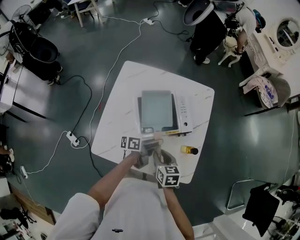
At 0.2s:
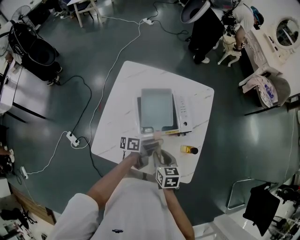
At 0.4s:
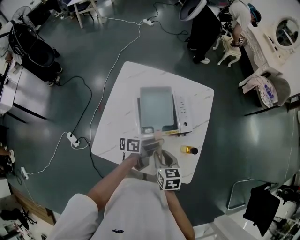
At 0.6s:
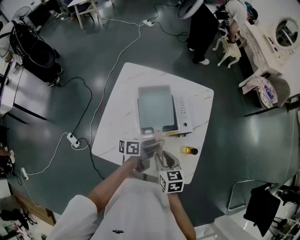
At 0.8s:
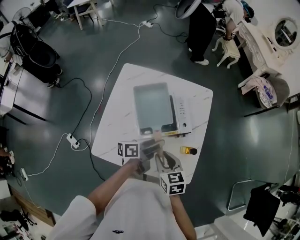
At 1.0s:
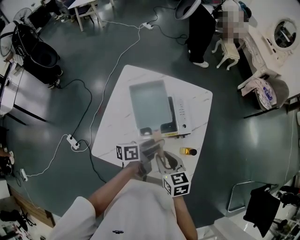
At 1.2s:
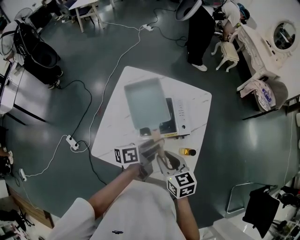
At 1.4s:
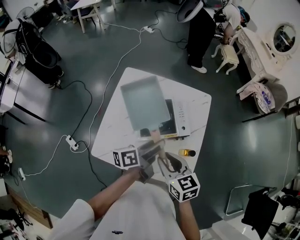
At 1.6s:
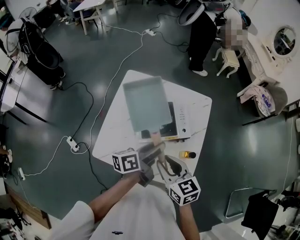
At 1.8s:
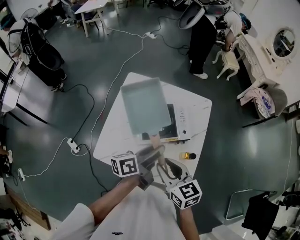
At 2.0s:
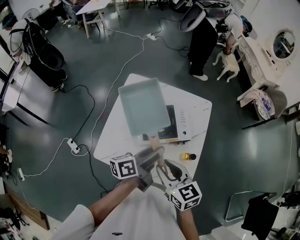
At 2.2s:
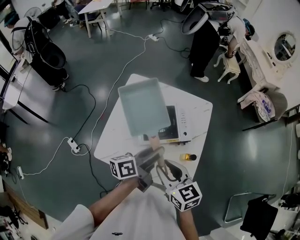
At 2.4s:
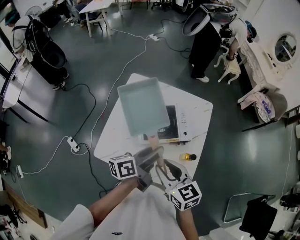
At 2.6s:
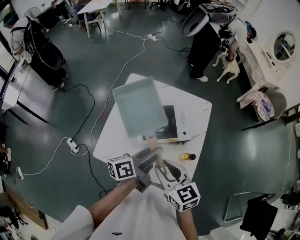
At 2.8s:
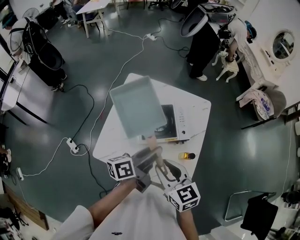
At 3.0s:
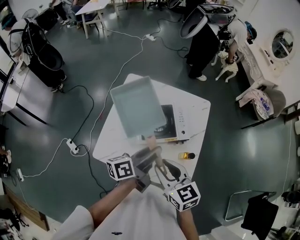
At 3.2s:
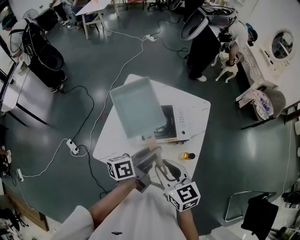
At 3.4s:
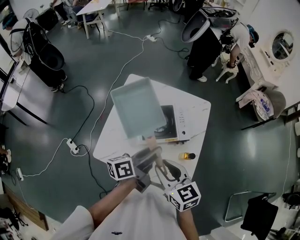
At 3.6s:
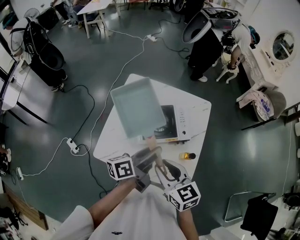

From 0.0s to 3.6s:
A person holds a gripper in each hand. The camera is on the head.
From 0.0s to 1.8s: Both grippers travel together upward, about 20 cm. The right gripper swivels some 30 degrees, while the left gripper turns by approximately 20 degrees.
From 1.8s to 3.6s: The grippers stay close to where they were, moving slightly.

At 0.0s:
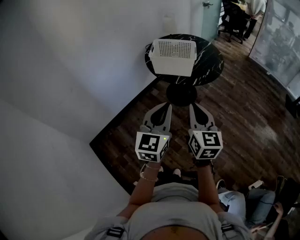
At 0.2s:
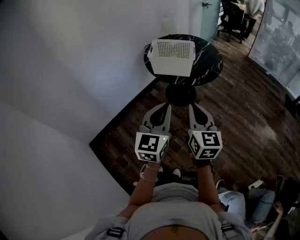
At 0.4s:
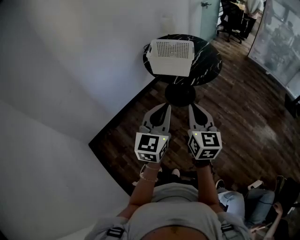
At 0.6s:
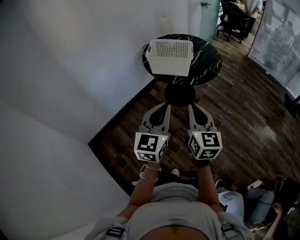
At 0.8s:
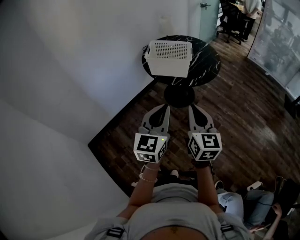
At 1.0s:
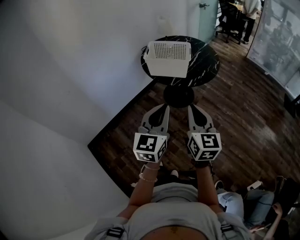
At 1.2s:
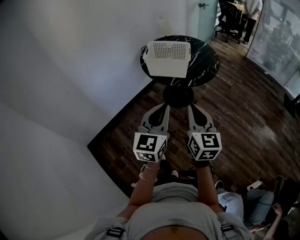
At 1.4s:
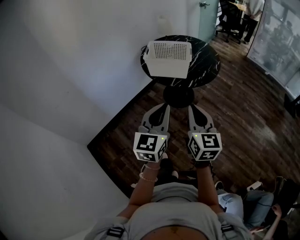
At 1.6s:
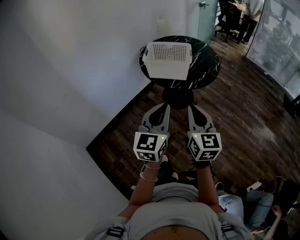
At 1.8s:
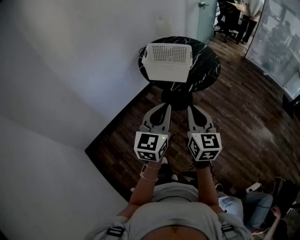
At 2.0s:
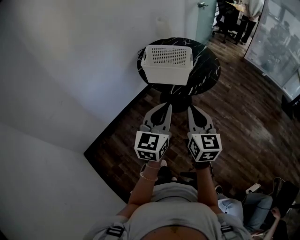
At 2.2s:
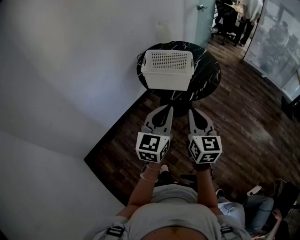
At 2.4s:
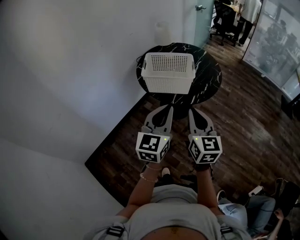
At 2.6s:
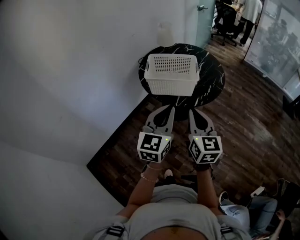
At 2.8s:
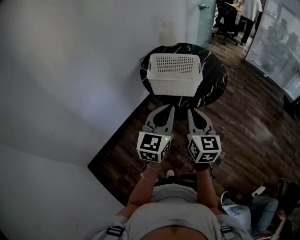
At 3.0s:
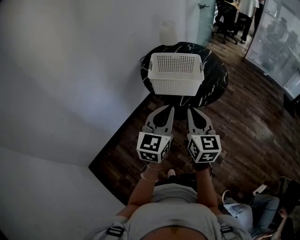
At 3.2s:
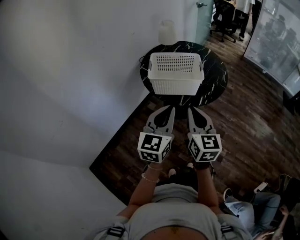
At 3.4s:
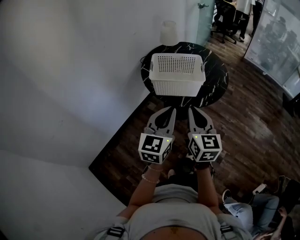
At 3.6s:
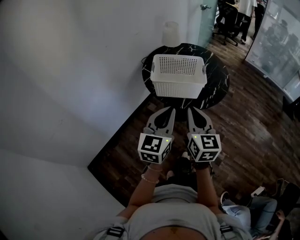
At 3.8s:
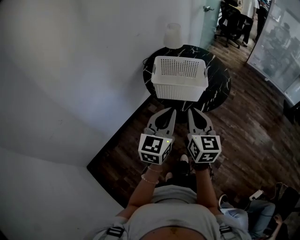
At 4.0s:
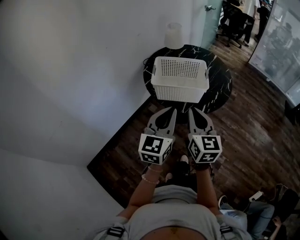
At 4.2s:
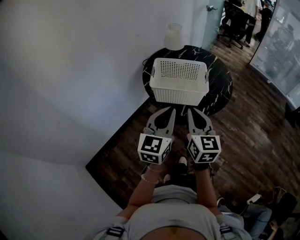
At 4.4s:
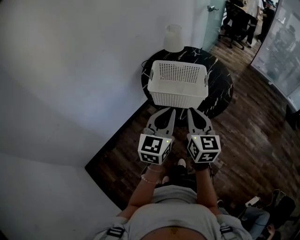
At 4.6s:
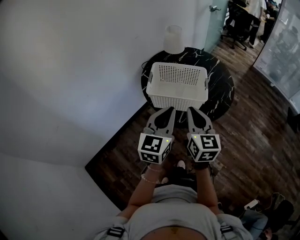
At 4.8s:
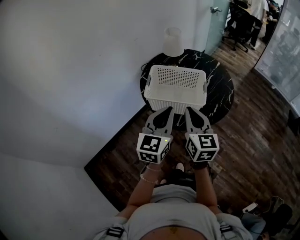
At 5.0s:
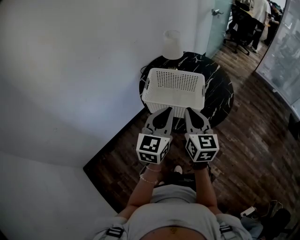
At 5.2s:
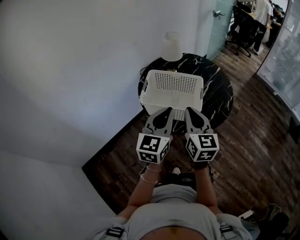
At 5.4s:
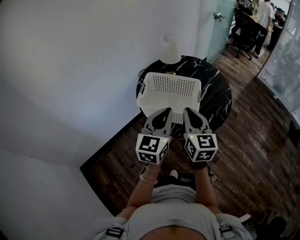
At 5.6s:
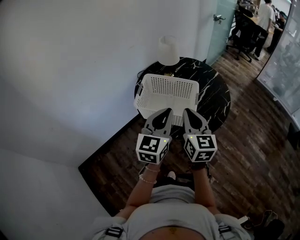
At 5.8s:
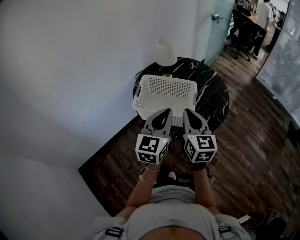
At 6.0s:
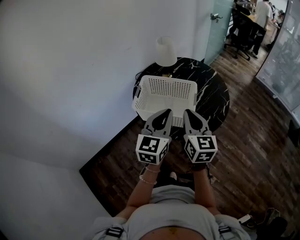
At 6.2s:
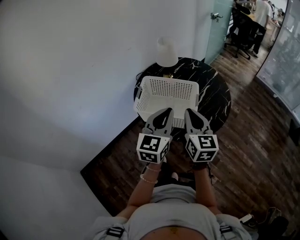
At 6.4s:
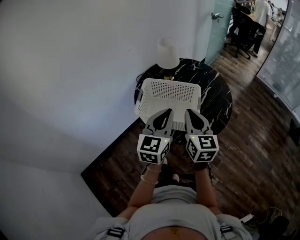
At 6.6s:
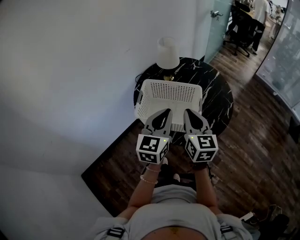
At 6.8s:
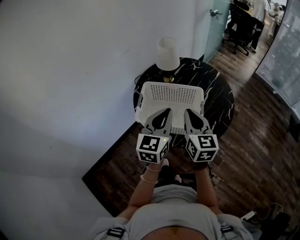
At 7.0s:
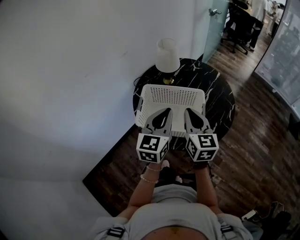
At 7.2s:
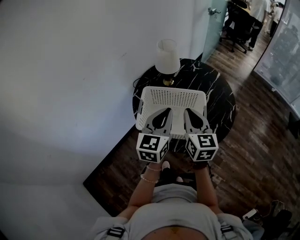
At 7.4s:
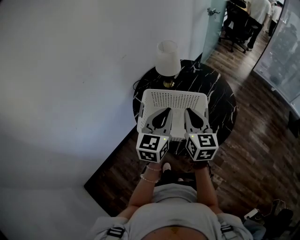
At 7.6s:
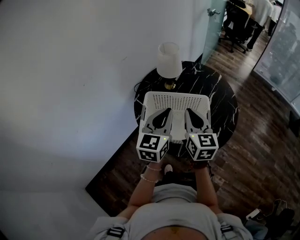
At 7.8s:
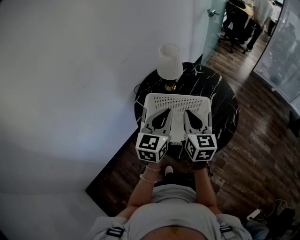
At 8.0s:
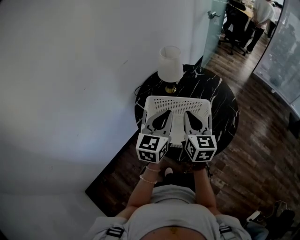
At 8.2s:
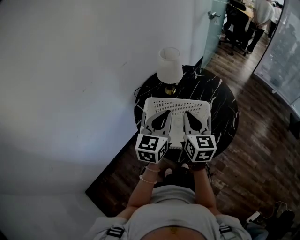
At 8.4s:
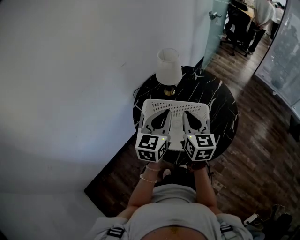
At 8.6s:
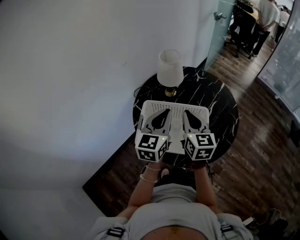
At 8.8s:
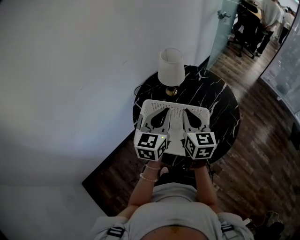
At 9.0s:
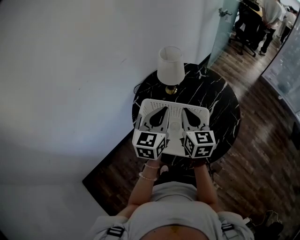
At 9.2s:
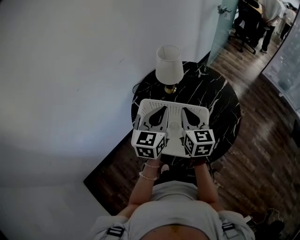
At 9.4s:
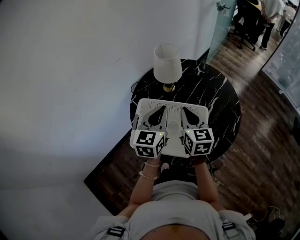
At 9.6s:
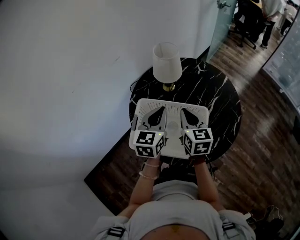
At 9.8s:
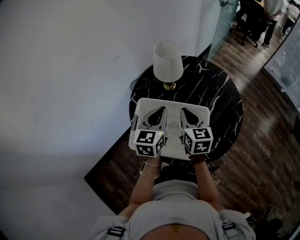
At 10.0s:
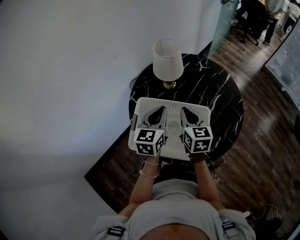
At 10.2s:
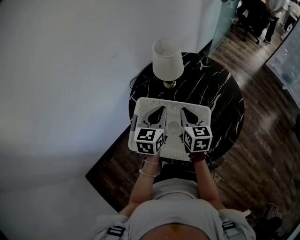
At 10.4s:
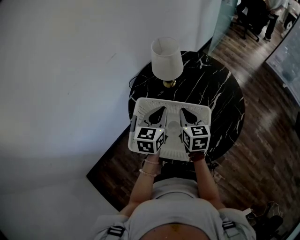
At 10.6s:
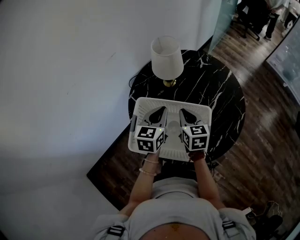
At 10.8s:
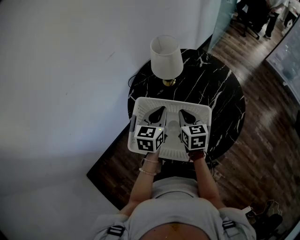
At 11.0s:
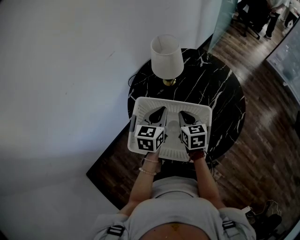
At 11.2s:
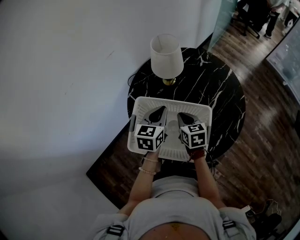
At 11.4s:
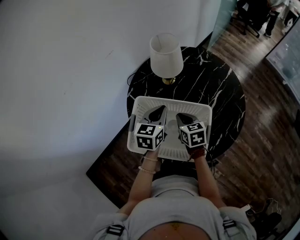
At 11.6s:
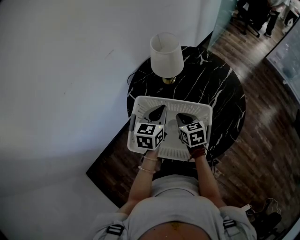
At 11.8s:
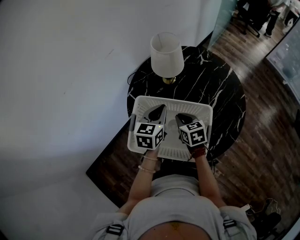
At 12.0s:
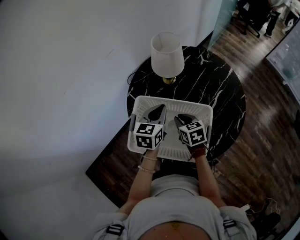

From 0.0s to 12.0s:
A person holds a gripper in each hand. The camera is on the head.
From 0.0s to 1.6s: There are only small adjustments of the grippers.
From 1.6s to 3.0s: The two grippers go about 20 cm forward and to the left.
From 3.0s to 4.4s: Both grippers travel together forward, roughly 10 cm.
From 4.4s to 6.0s: Both grippers move forward and to the right, roughly 15 cm.
From 6.0s to 7.6s: Both grippers move forward and to the left, some 15 cm.
From 7.6s to 9.0s: Both grippers move forward, roughly 10 cm.
From 9.0s to 10.4s: The right gripper travels downward by some 10 cm. Meanwhile the left gripper heads downward and forward, covering approximately 10 cm.
From 10.4s to 12.0s: The right gripper heads downward, covering about 10 cm, and rotates some 20 degrees.

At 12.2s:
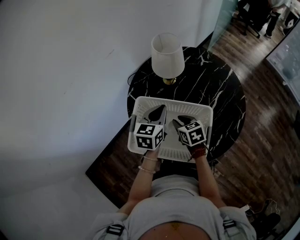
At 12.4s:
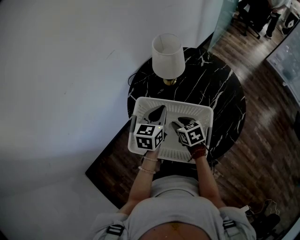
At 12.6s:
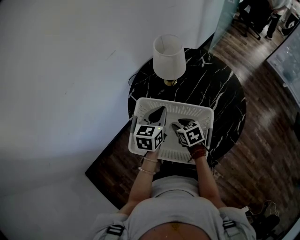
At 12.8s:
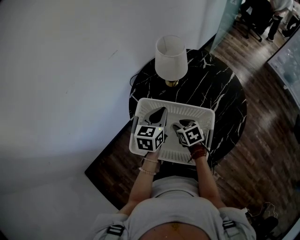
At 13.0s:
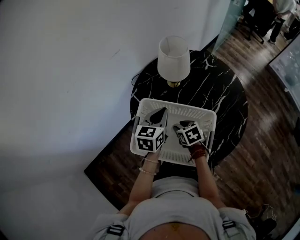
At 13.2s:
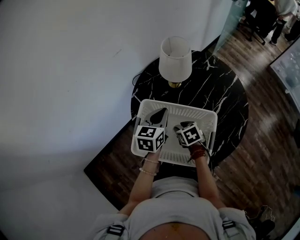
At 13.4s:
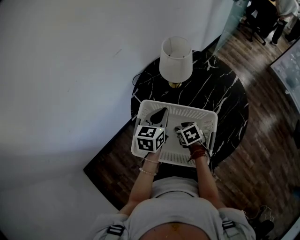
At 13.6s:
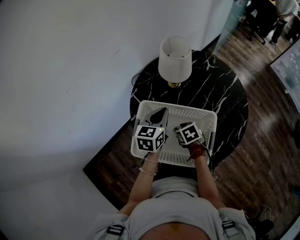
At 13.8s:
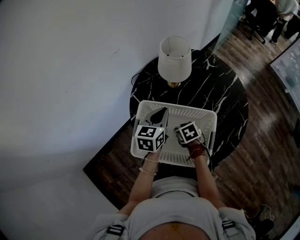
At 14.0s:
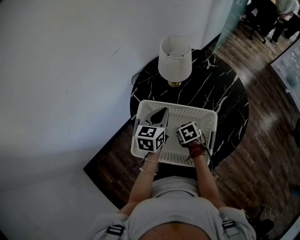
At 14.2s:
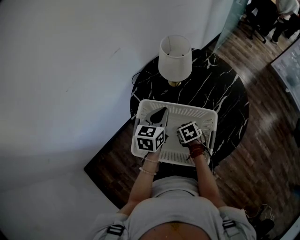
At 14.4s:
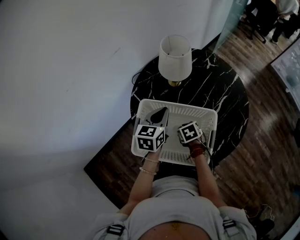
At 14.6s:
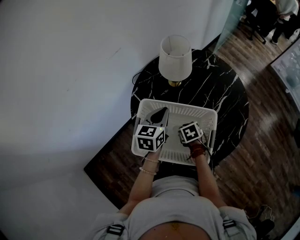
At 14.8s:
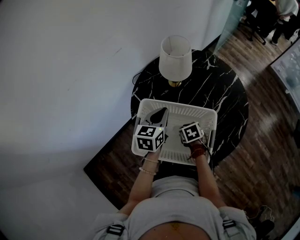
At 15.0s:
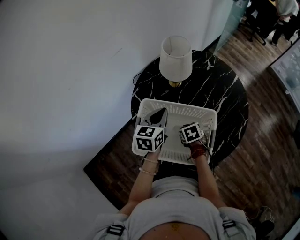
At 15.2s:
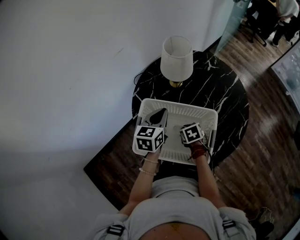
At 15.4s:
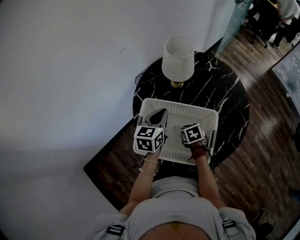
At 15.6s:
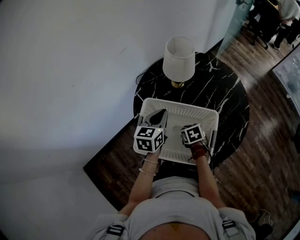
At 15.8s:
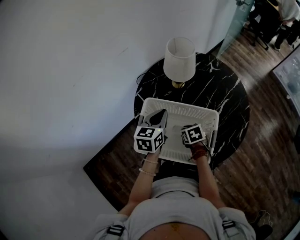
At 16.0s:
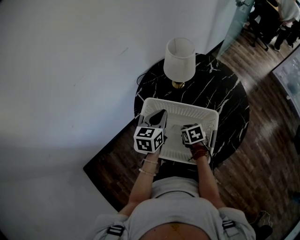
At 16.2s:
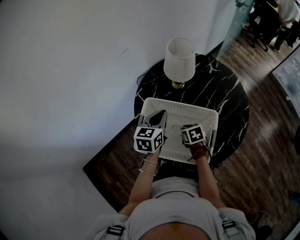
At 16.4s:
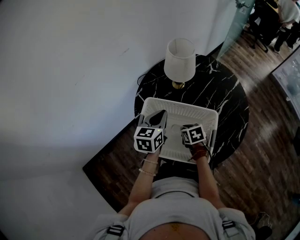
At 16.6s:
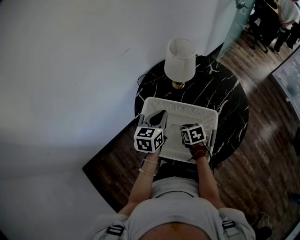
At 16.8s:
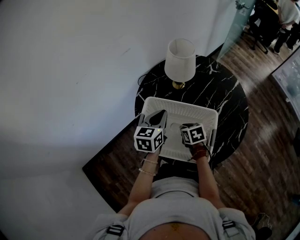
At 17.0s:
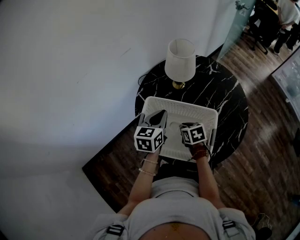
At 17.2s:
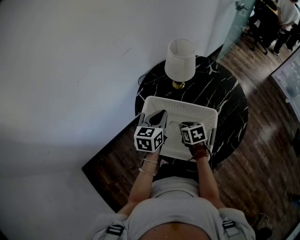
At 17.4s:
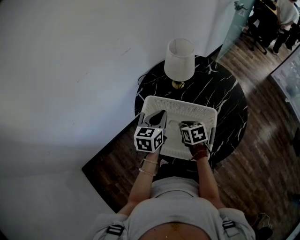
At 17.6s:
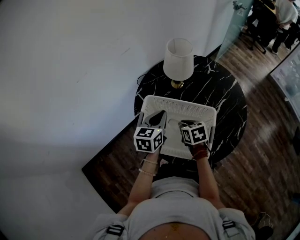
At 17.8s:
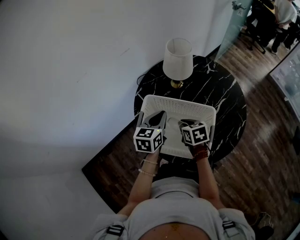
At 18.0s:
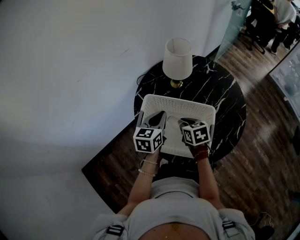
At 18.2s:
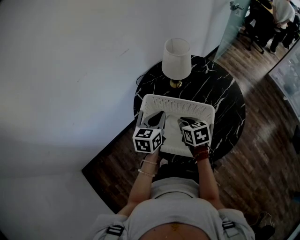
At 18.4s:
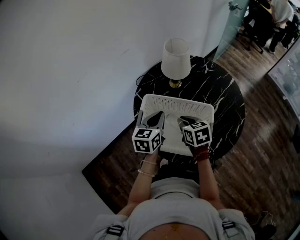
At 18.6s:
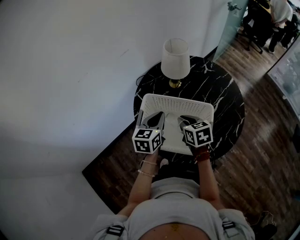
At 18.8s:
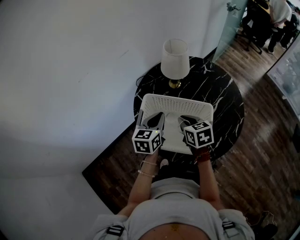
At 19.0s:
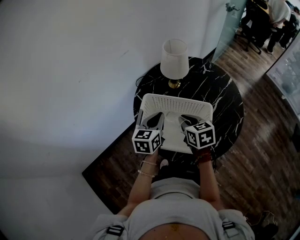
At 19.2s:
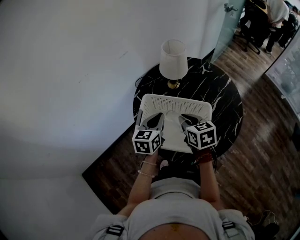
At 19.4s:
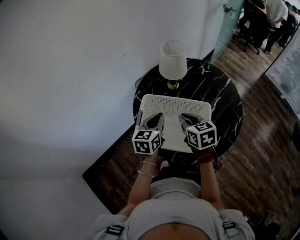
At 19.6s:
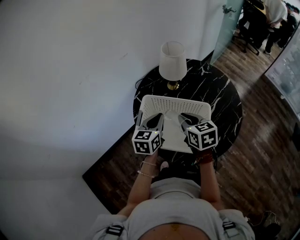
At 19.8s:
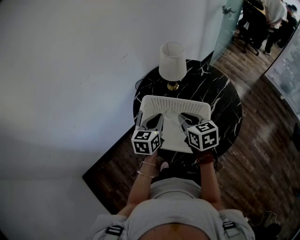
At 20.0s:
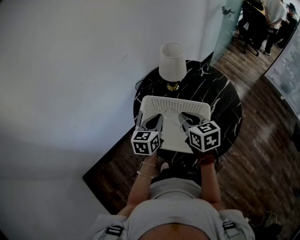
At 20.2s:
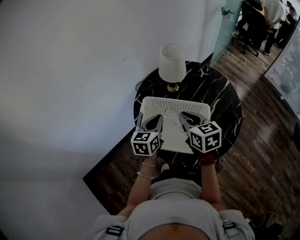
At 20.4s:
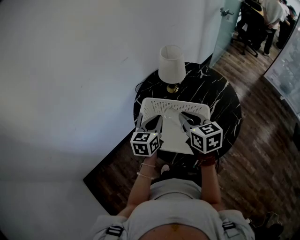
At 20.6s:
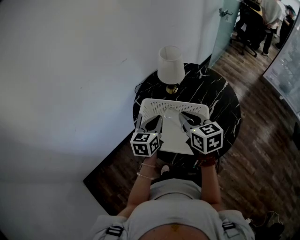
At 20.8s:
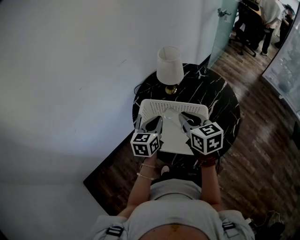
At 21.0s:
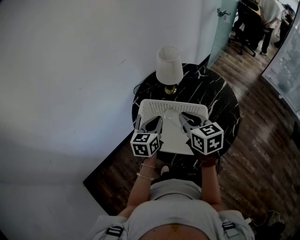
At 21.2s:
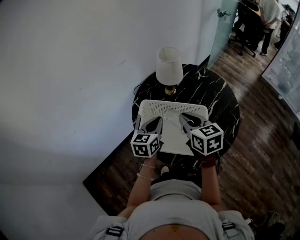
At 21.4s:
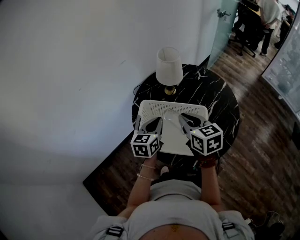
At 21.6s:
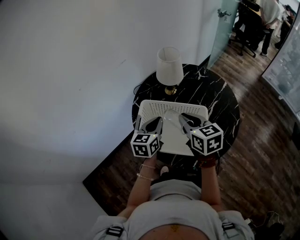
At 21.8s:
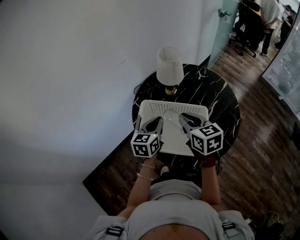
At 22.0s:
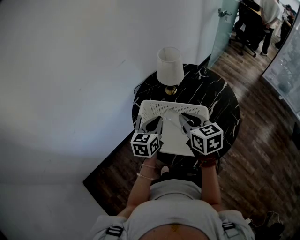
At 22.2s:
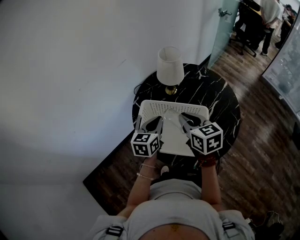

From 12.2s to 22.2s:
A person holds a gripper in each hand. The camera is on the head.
From 12.2s to 13.6s: The right gripper moves downward, approximately 5 cm.
From 13.6s to 15.0s: The right gripper closes.
From 15.0s to 16.4s: The grippers stay close to where they were, moving slightly.
From 16.4s to 18.0s: The right gripper travels upward by roughly 10 cm.
From 18.0s to 19.4s: The right gripper moves upward, roughly 10 cm.
From 19.4s to 20.8s: The right gripper shifts approximately 5 cm upward.
From 20.8s to 22.2s: Both grippers stay about where they are.
